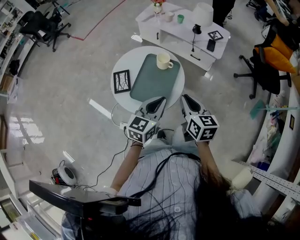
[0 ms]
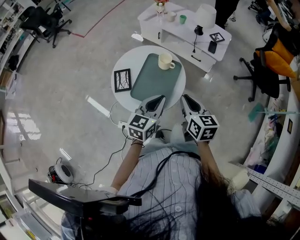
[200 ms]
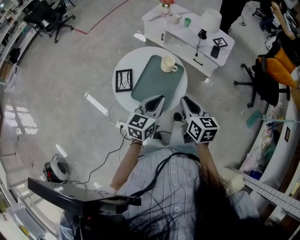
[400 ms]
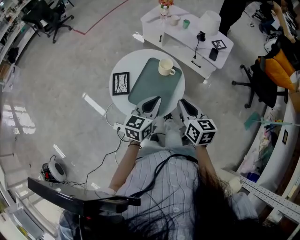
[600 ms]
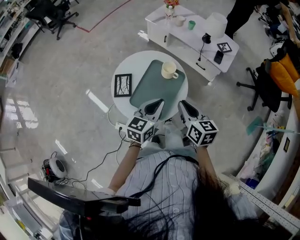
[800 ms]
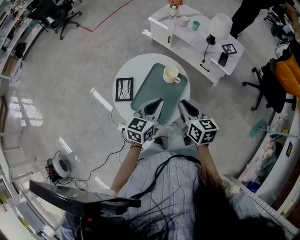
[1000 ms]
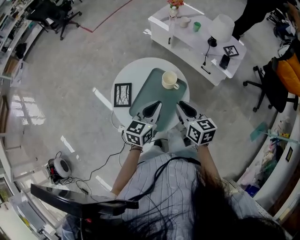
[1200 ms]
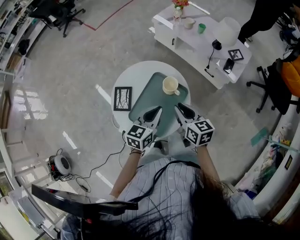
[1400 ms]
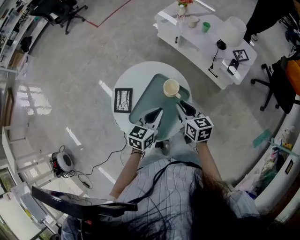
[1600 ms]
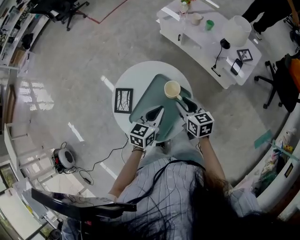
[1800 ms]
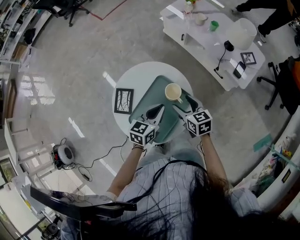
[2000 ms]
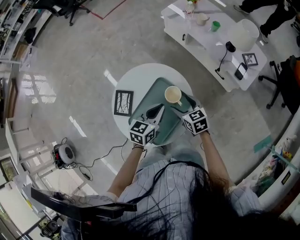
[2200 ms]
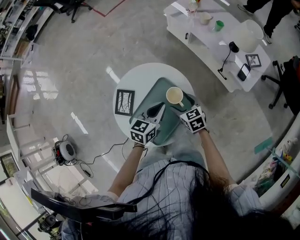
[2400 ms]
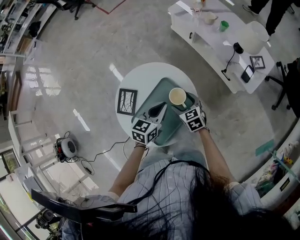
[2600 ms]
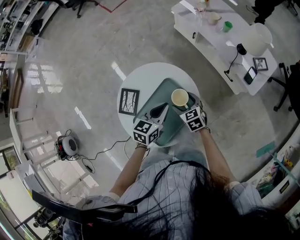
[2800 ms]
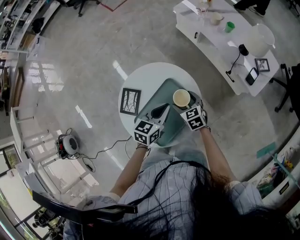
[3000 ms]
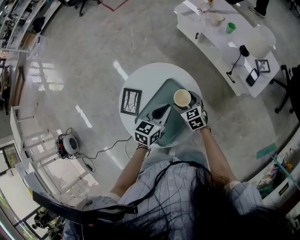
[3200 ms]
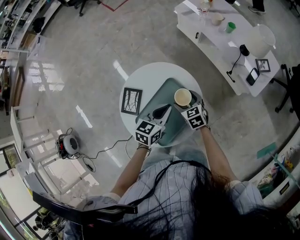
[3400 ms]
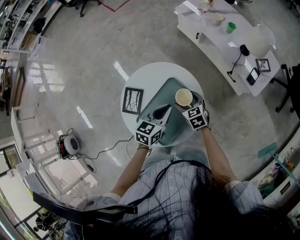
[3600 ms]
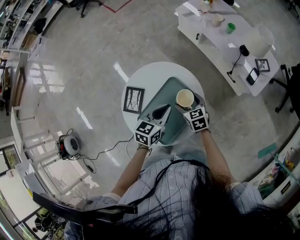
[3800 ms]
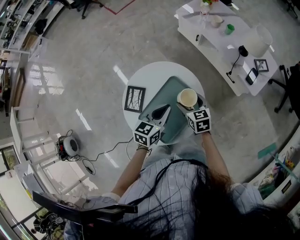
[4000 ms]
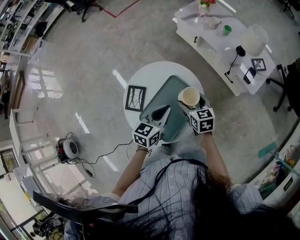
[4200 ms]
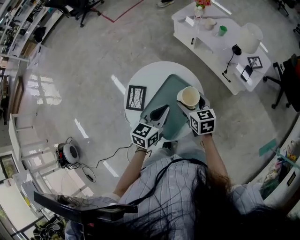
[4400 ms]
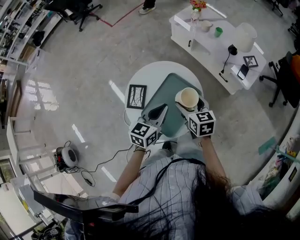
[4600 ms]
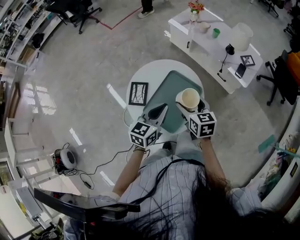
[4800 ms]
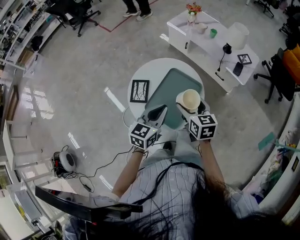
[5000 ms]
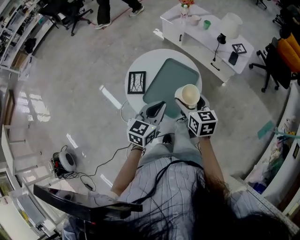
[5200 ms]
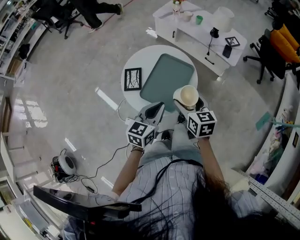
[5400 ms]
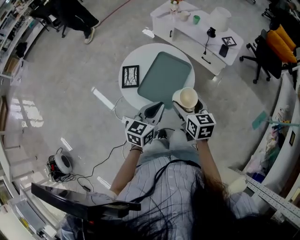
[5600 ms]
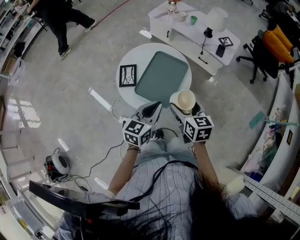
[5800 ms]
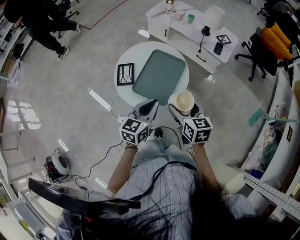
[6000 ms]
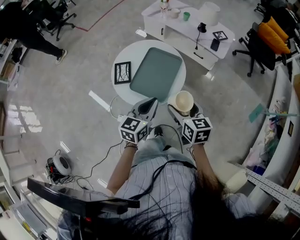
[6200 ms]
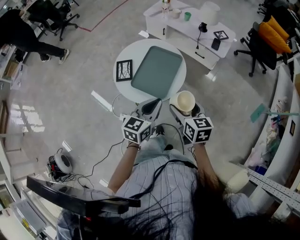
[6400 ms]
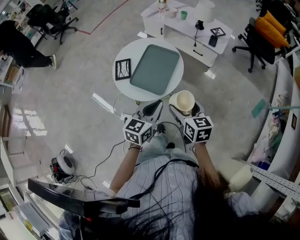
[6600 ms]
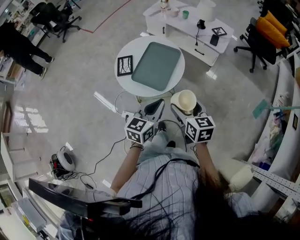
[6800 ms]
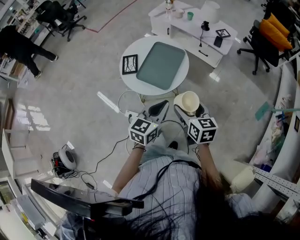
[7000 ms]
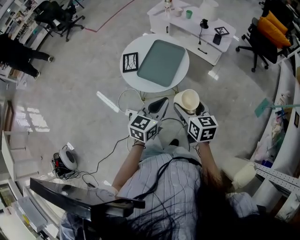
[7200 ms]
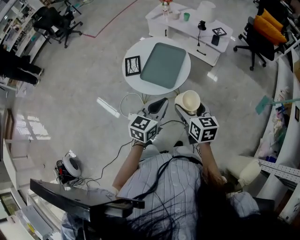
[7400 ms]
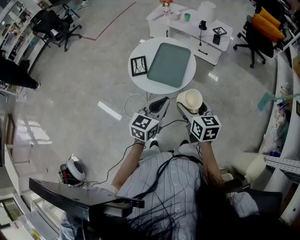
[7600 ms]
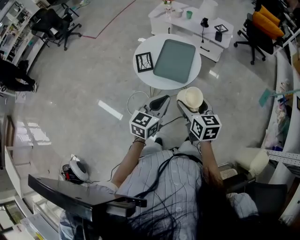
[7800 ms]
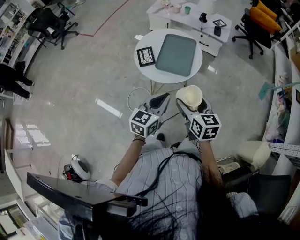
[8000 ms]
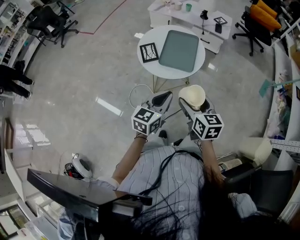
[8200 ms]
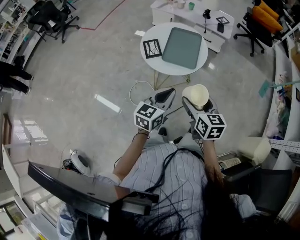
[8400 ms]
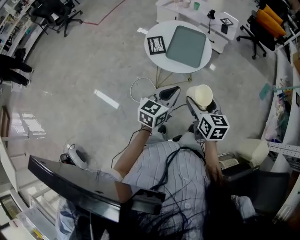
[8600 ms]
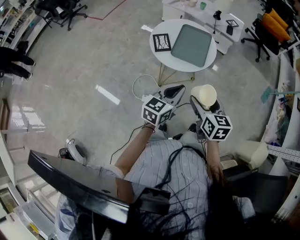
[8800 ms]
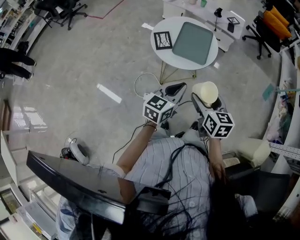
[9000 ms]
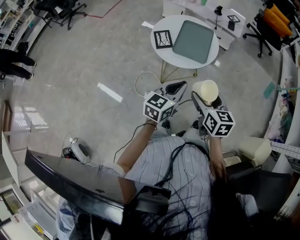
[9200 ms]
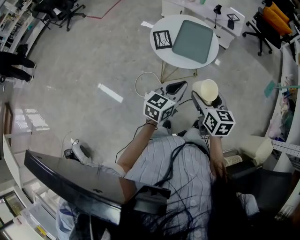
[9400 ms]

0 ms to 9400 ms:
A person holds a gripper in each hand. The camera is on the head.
0 ms to 1600 ms: The grippers both shift forward and downward by roughly 20 cm. The right gripper rotates roughly 20 degrees.
1600 ms to 3200 ms: The right gripper heads downward and forward, covering roughly 15 cm, rotates about 30 degrees, and opens. Meanwhile the left gripper moves forward, about 10 cm.
3200 ms to 4800 ms: The left gripper shifts about 15 cm backward, upward and to the left; the right gripper travels upward and backward by about 20 cm, and changes its angle by approximately 30 degrees.
4800 ms to 6200 ms: The grippers both shift backward by some 20 cm.
6200 ms to 7800 ms: The two grippers go roughly 15 cm backward and to the left.
7800 ms to 9400 ms: The grippers both shift backward by about 5 cm.

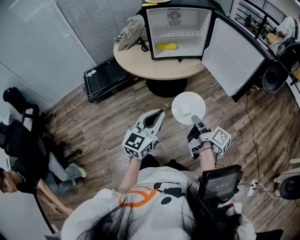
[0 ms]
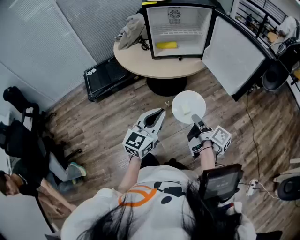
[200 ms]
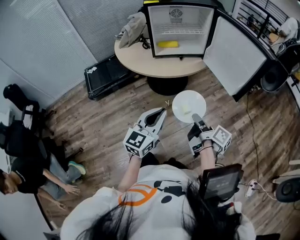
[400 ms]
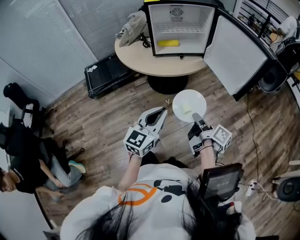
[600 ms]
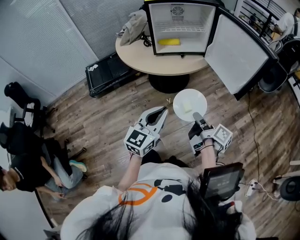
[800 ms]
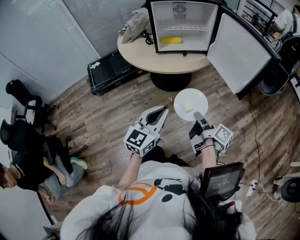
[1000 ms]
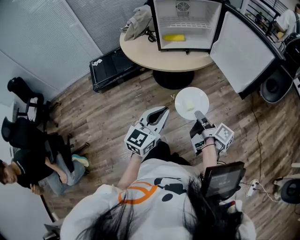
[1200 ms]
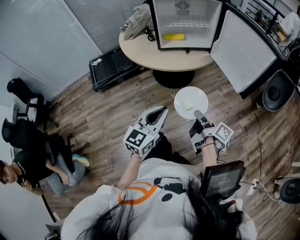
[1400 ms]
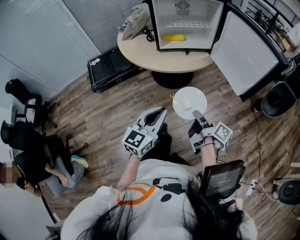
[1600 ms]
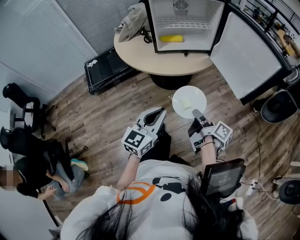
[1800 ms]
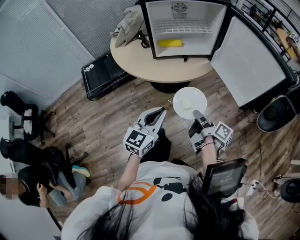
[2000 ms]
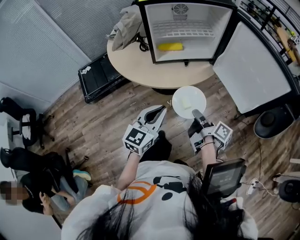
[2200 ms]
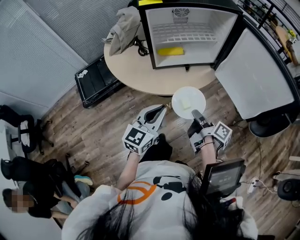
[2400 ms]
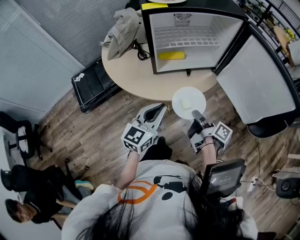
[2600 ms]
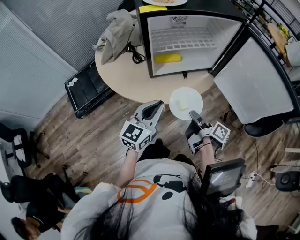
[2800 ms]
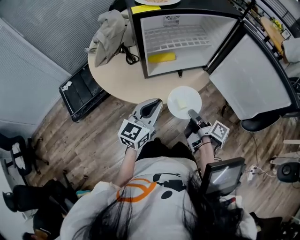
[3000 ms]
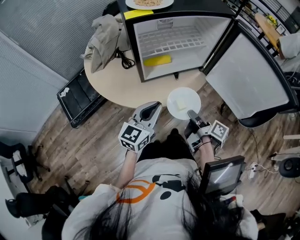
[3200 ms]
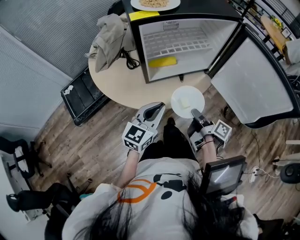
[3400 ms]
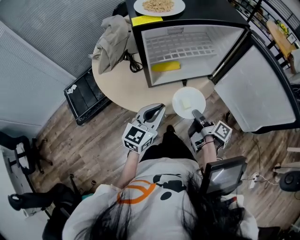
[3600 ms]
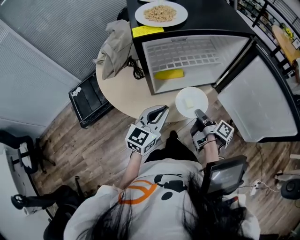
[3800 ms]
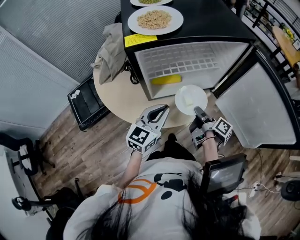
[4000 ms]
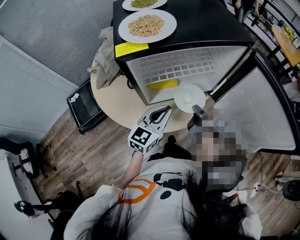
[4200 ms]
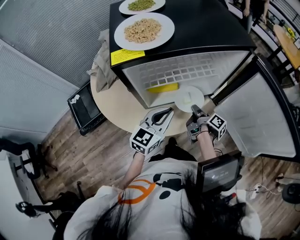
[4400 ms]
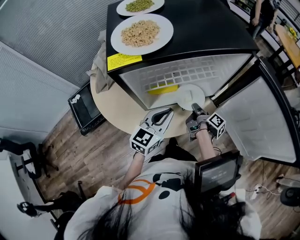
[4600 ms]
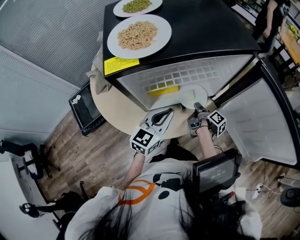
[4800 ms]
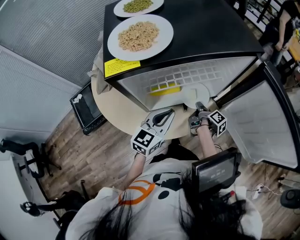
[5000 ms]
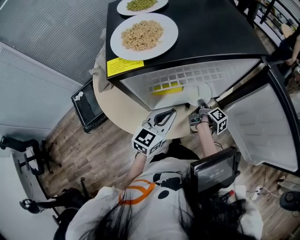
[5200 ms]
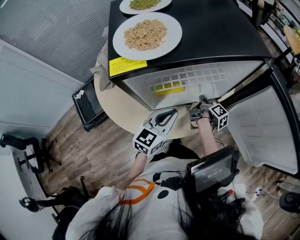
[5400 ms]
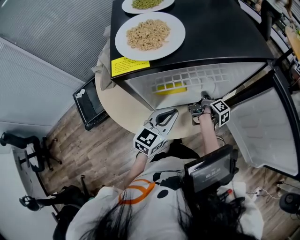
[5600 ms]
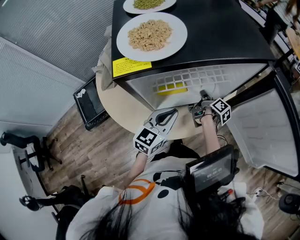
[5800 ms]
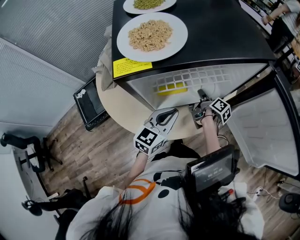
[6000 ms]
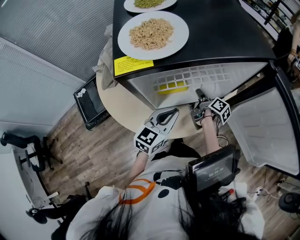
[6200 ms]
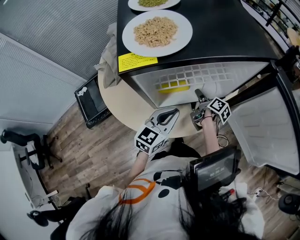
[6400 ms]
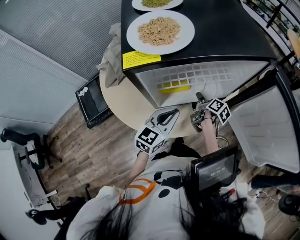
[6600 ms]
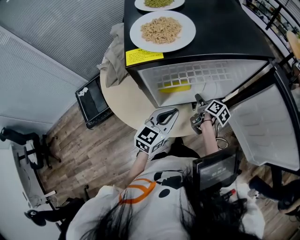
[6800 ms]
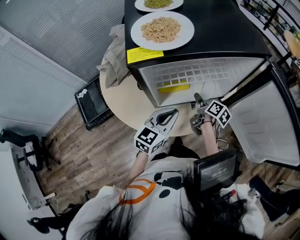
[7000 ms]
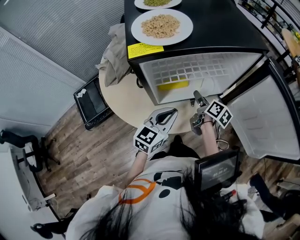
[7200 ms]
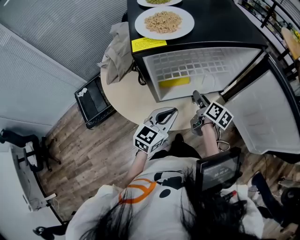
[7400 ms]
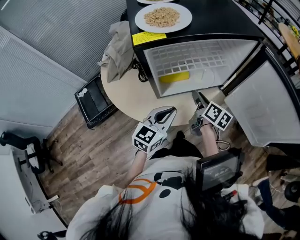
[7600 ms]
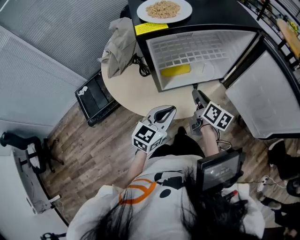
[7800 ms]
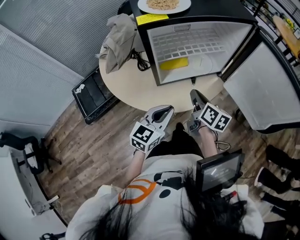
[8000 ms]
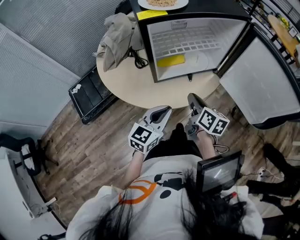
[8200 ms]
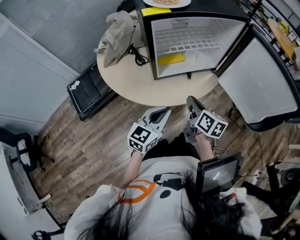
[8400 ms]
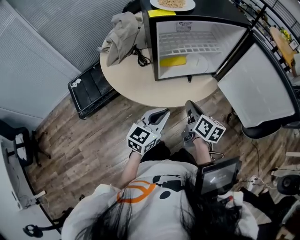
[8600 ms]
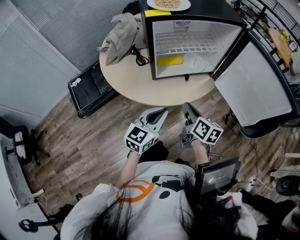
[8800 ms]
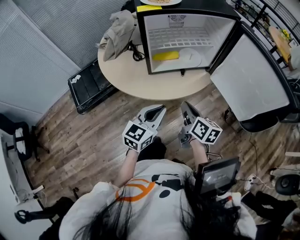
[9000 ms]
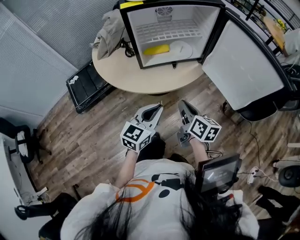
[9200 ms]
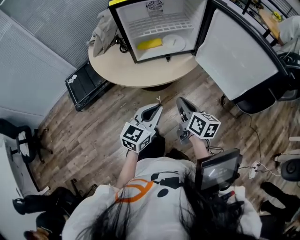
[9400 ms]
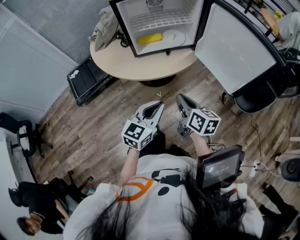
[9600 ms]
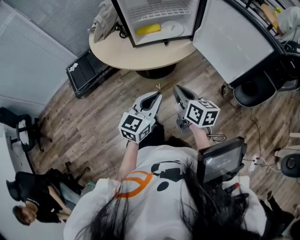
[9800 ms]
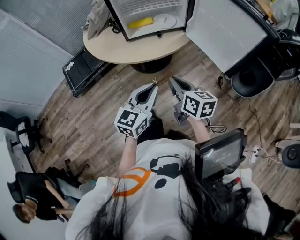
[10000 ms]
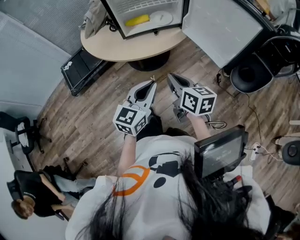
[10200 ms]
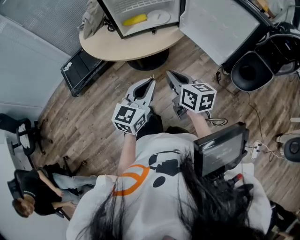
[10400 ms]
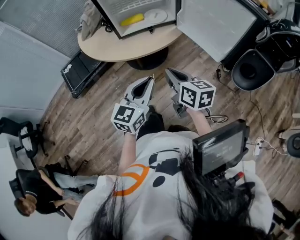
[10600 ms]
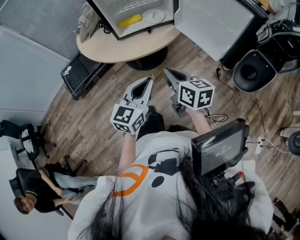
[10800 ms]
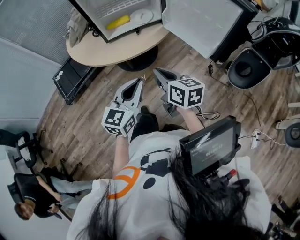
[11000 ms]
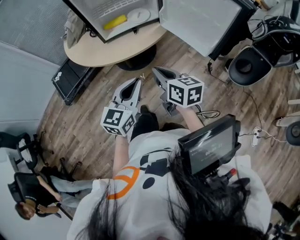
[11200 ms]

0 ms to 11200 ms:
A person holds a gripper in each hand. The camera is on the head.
1600 ms to 3200 ms: The left gripper moves some 30 cm.
3200 ms to 4800 ms: The left gripper ends up roughly 15 cm from where it was.
6400 ms to 8000 ms: The left gripper ends up roughly 15 cm from where it was.
8000 ms to 9600 ms: The left gripper ends up roughly 20 cm from where it was.

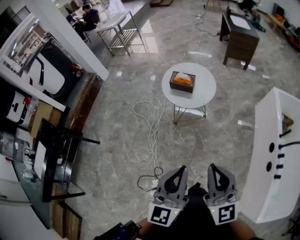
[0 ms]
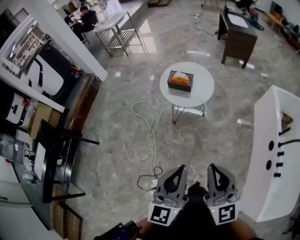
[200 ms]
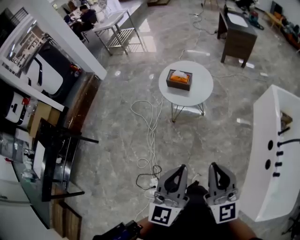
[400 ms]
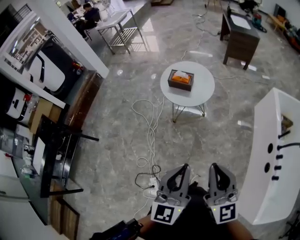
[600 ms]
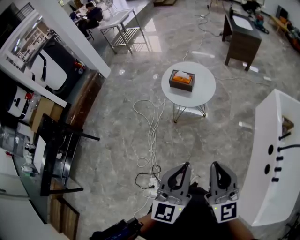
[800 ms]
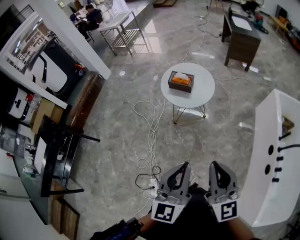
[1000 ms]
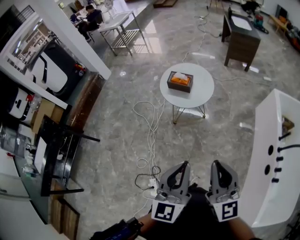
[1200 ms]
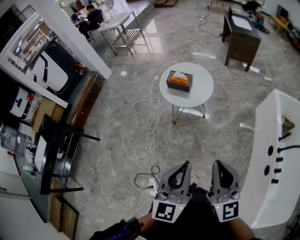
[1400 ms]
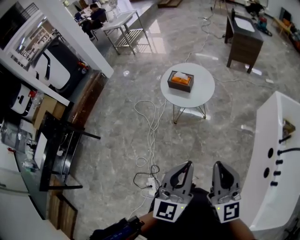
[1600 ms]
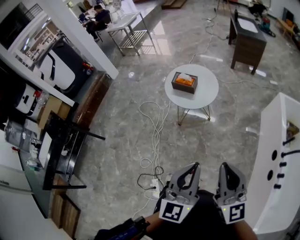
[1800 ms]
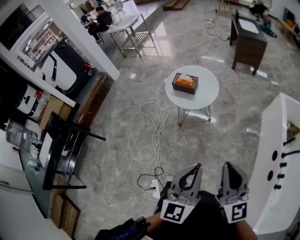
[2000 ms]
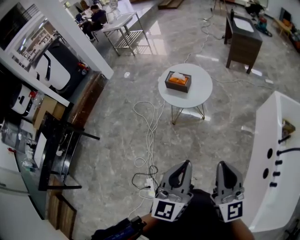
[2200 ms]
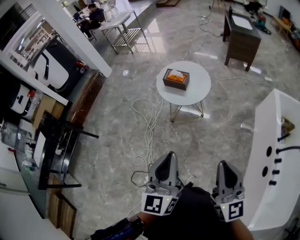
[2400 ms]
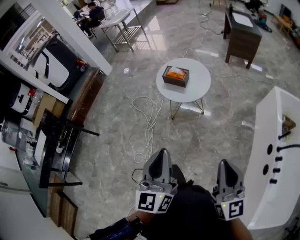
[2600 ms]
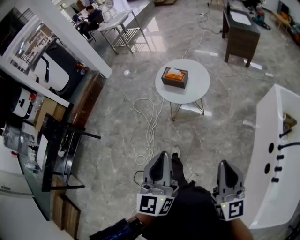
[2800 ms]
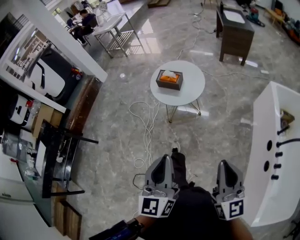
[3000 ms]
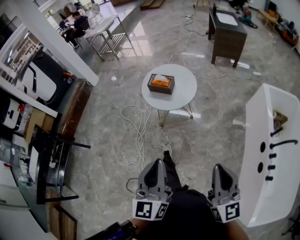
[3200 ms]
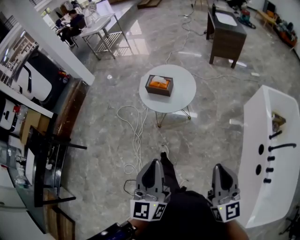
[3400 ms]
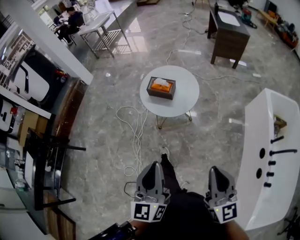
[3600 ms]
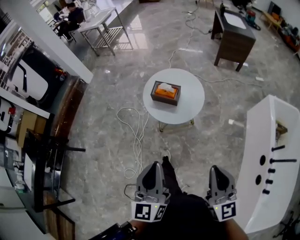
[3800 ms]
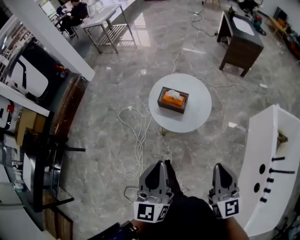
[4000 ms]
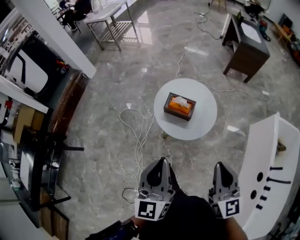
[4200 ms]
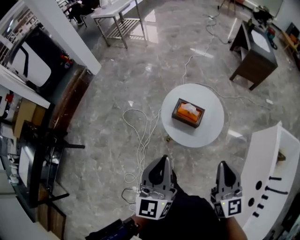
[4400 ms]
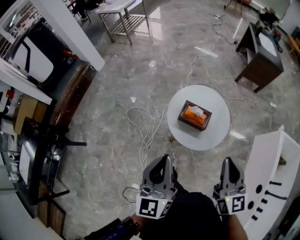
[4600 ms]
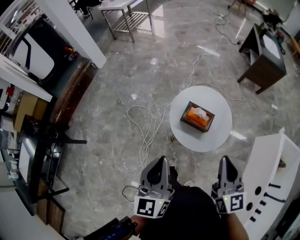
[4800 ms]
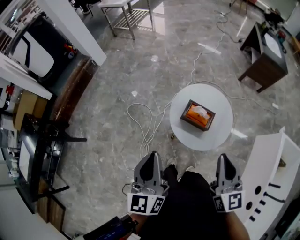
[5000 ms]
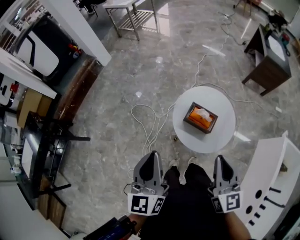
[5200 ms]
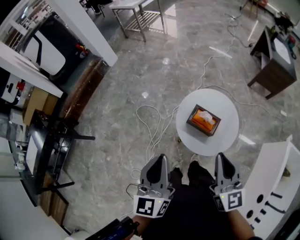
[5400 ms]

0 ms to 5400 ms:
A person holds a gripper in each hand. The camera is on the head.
0 ms to 1400 ms: The grippers both shift to the right by about 5 cm.
1400 ms to 2800 ms: The right gripper travels to the right by about 10 cm.
2800 ms to 4000 ms: Both grippers travel together forward, about 25 cm.
4000 ms to 5400 ms: The grippers both shift forward and to the left by about 25 cm.
